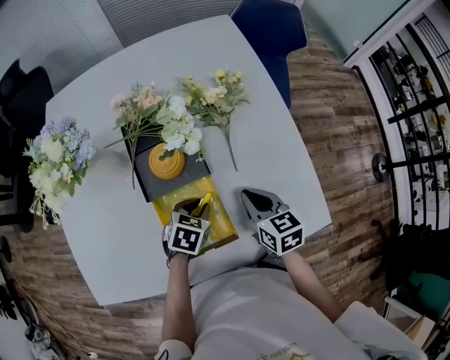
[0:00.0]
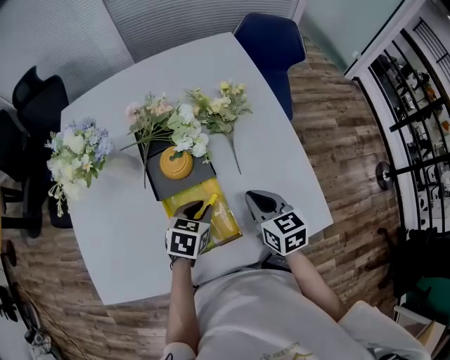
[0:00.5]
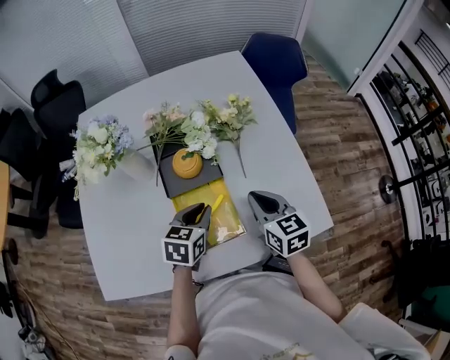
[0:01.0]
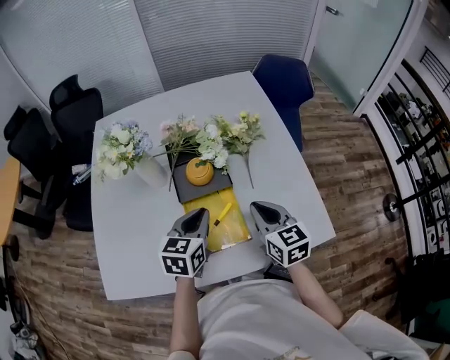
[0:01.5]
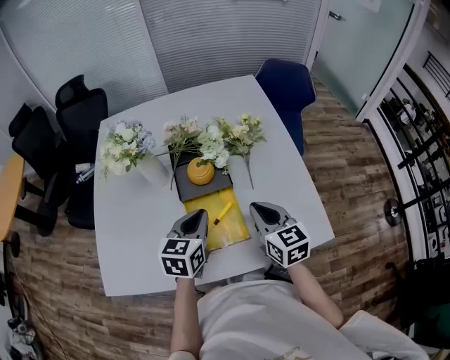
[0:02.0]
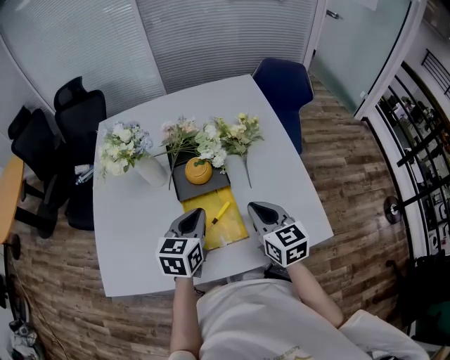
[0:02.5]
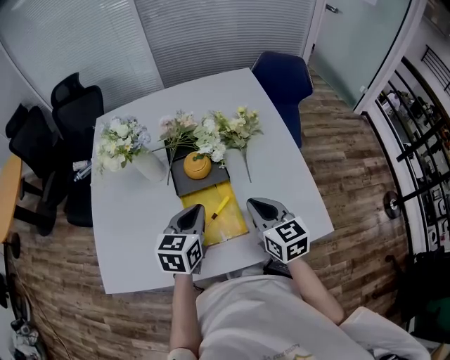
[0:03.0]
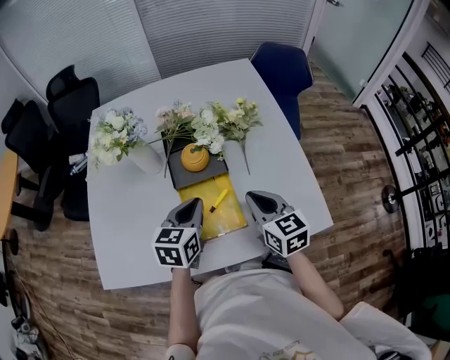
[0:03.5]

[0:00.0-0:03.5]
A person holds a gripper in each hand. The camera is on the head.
0:00.0 to 0:02.0: The right gripper shifts some 15 cm upward and backward. Meanwhile the left gripper travels upward by roughly 20 cm, and angles its fingers upward, by some 30 degrees.
0:02.0 to 0:03.5: Neither gripper changes place.

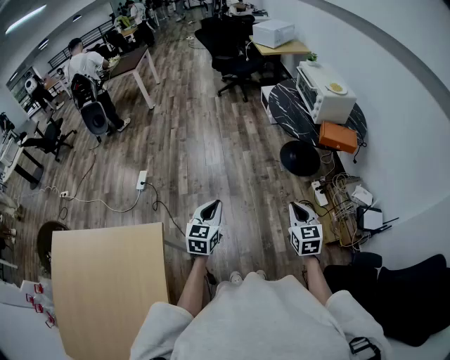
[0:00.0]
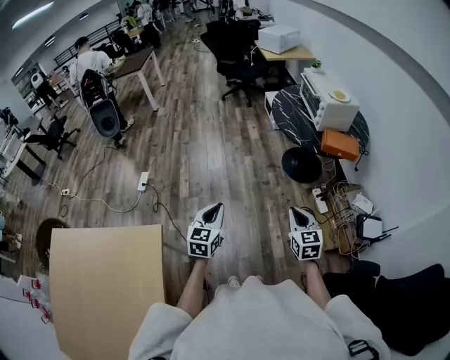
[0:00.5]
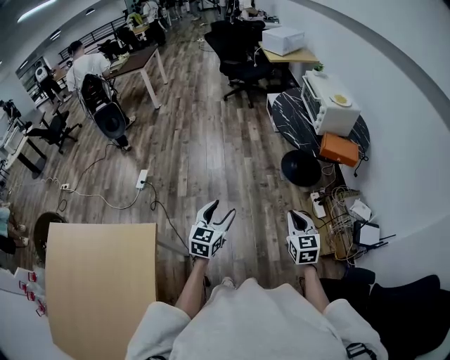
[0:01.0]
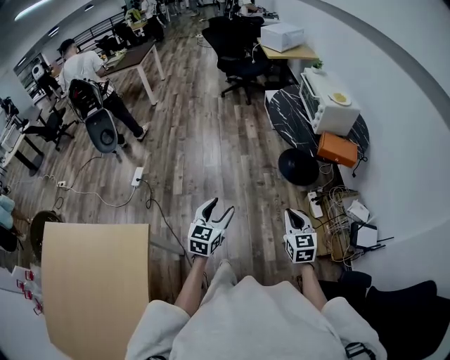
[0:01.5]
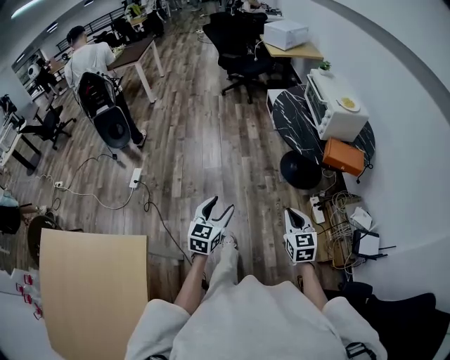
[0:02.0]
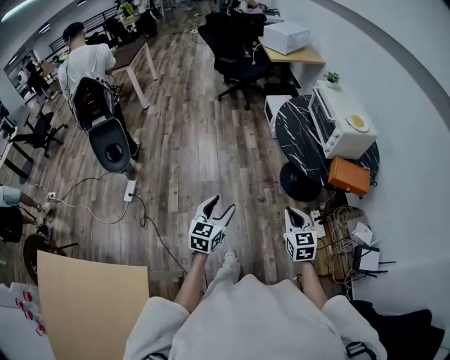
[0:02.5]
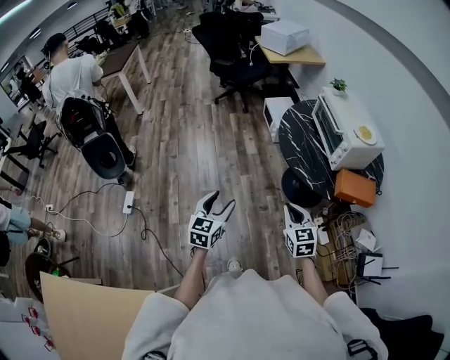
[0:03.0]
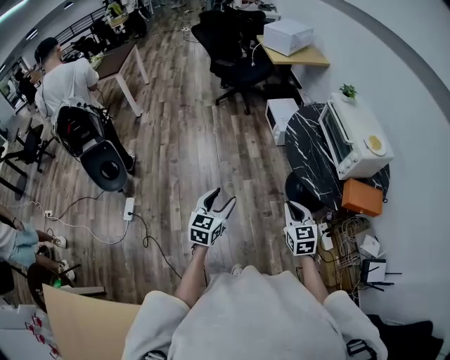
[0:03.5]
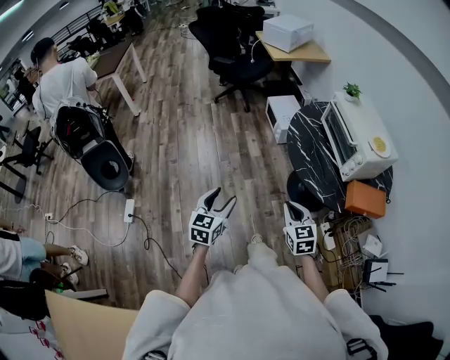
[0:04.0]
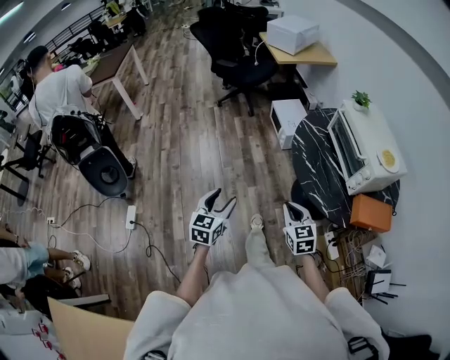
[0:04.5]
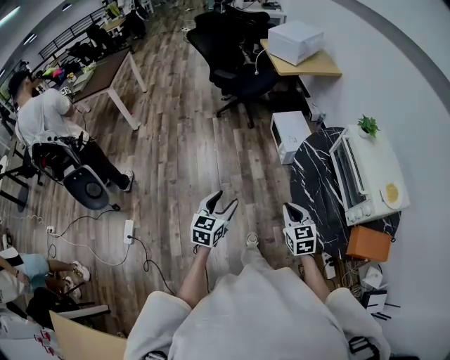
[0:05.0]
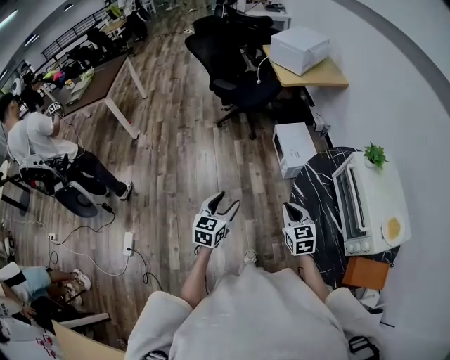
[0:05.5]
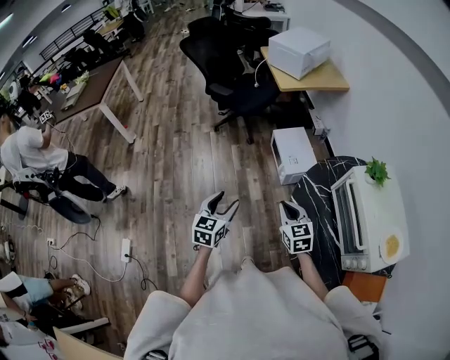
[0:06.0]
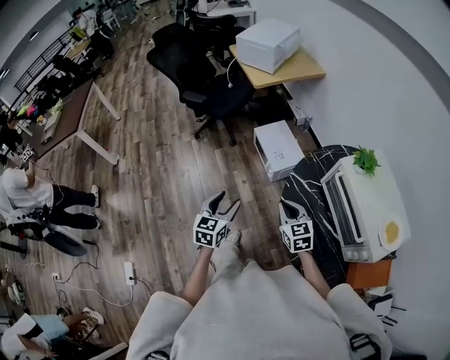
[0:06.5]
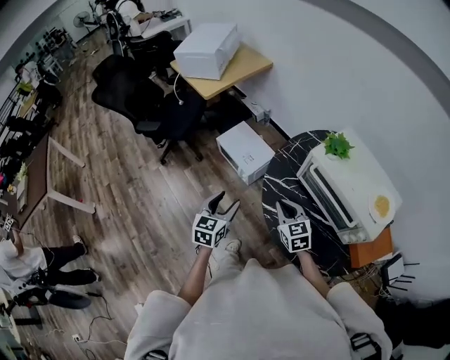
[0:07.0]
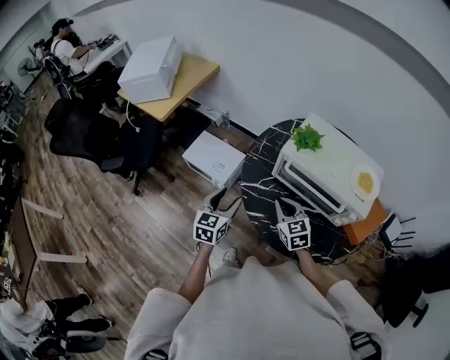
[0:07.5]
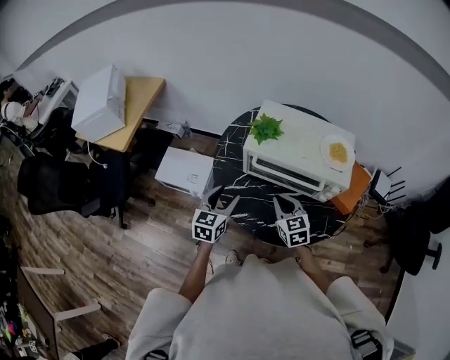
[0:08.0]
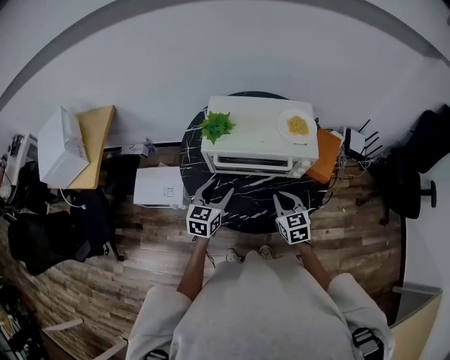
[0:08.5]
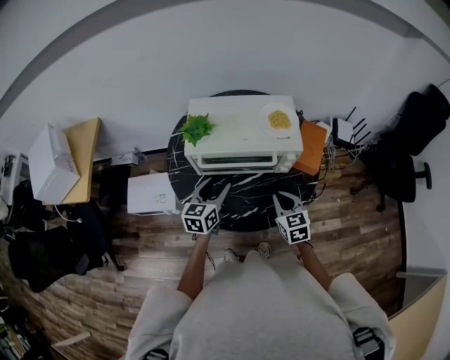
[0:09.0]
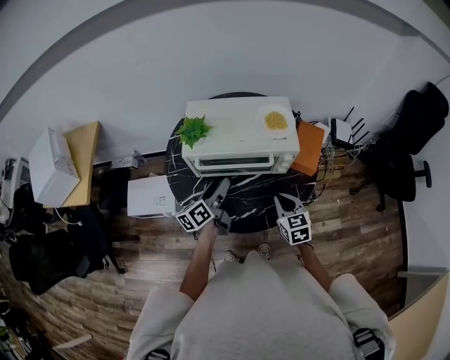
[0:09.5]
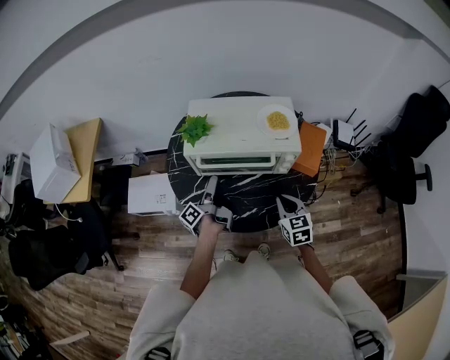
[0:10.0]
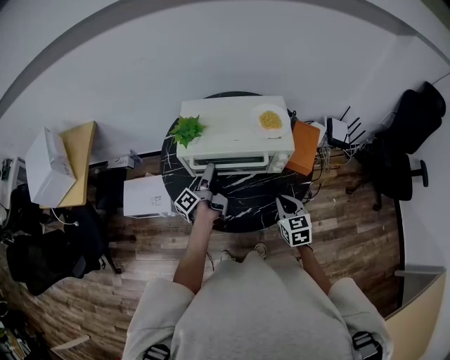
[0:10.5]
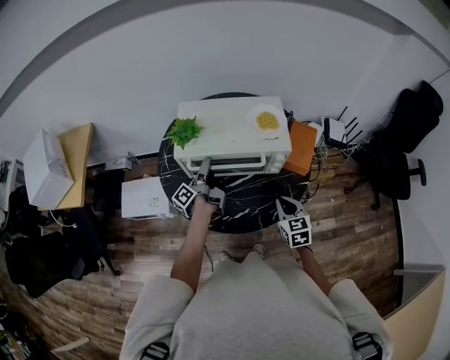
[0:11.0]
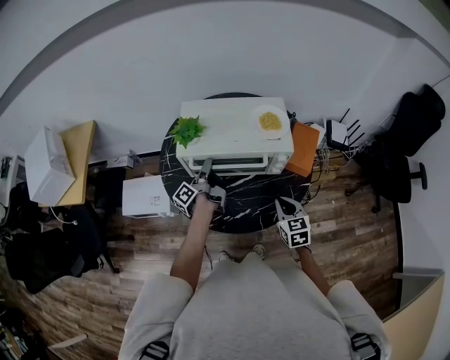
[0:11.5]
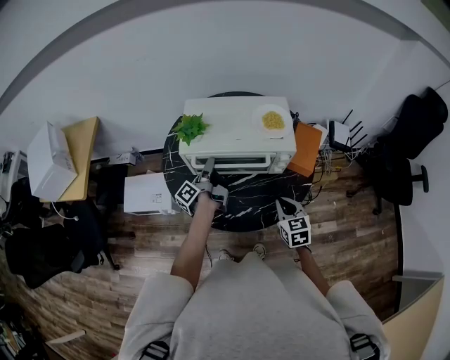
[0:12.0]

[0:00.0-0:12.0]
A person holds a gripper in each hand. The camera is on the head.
0:00.0 to 0:02.0: The left gripper goes approximately 15 cm forward and to the right, and opens up, while the right gripper heads forward, covering roughly 10 cm.
0:02.0 to 0:04.0: The right gripper shifts some 35 cm forward and to the left; the left gripper goes approximately 35 cm forward.
0:04.0 to 0:06.0: The pair of grippers is taken forward, about 40 cm.
0:06.0 to 0:08.0: The right gripper shifts by some 20 cm, and changes its angle by about 60 degrees, while the left gripper shifts by approximately 35 cm, and turns by about 60 degrees.
0:08.0 to 0:10.0: The right gripper goes approximately 15 cm to the right, and rotates approximately 20 degrees. The left gripper shifts approximately 10 cm to the right and forward, and rolls counterclockwise, seen from behind, by roughly 80 degrees.
0:10.0 to 0:12.0: The left gripper moves forward, about 5 cm, and closes.

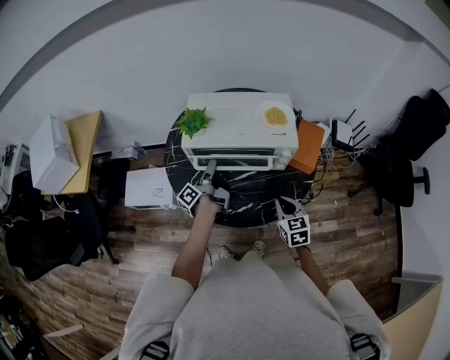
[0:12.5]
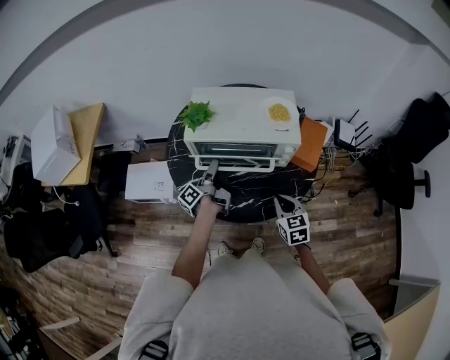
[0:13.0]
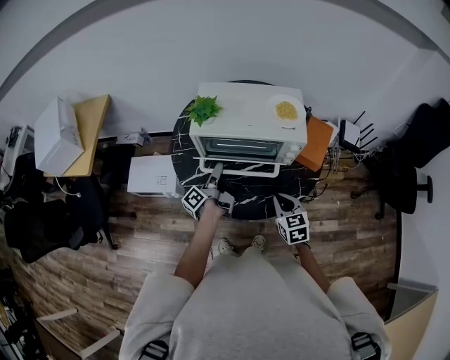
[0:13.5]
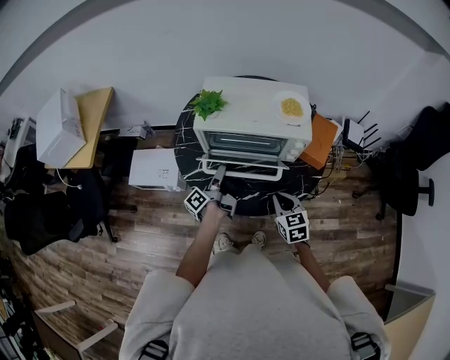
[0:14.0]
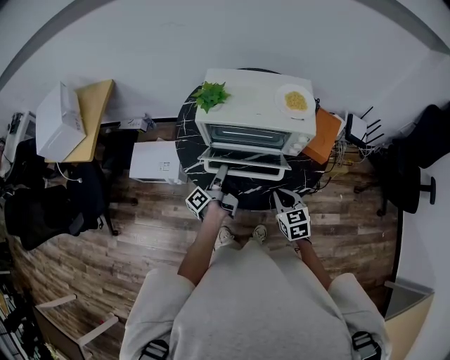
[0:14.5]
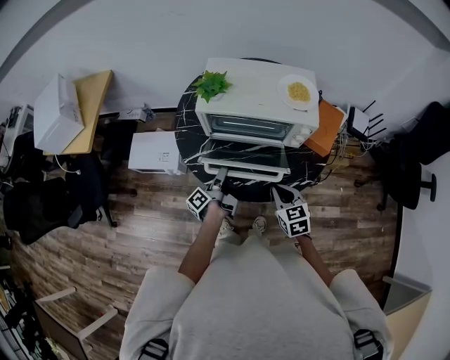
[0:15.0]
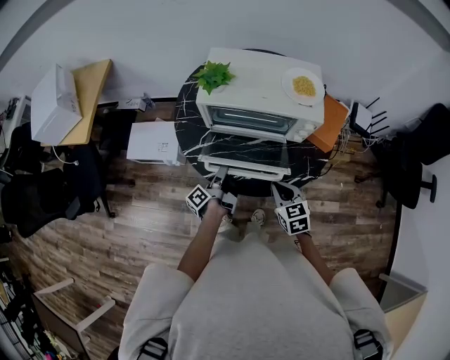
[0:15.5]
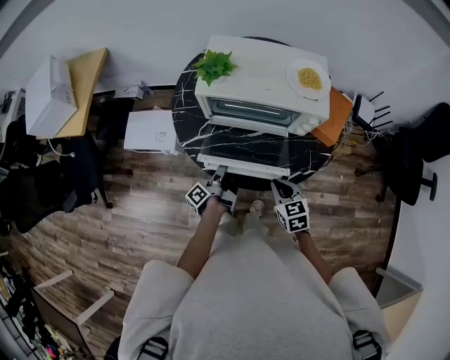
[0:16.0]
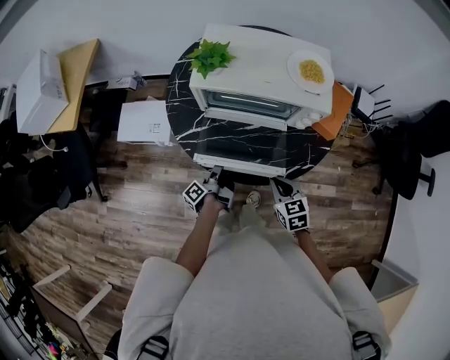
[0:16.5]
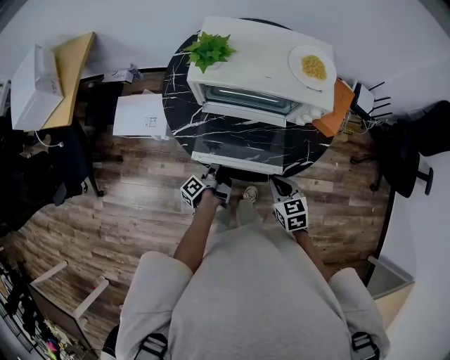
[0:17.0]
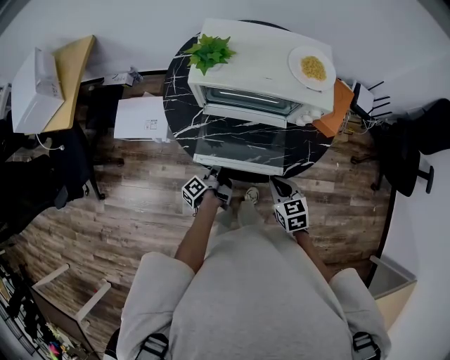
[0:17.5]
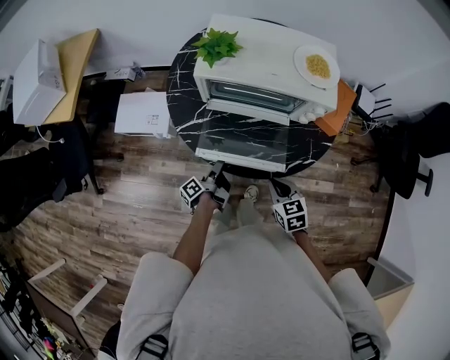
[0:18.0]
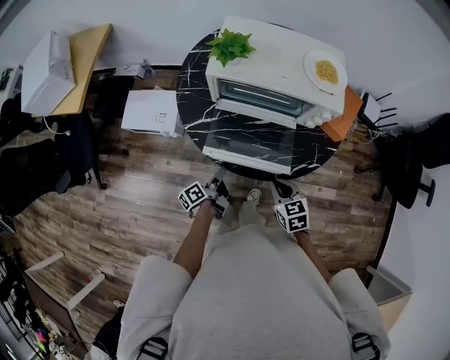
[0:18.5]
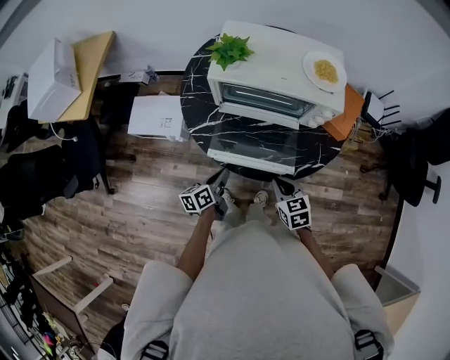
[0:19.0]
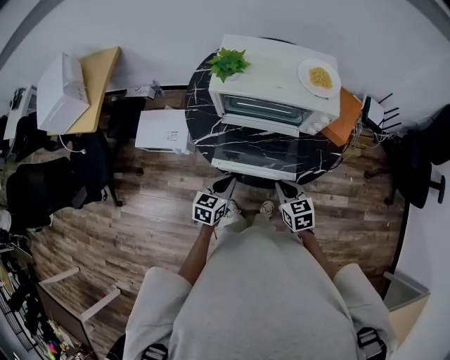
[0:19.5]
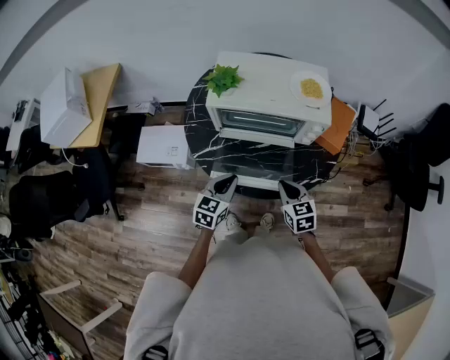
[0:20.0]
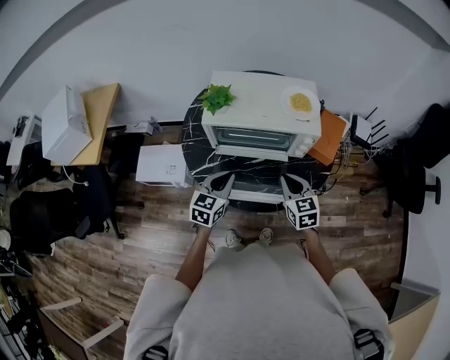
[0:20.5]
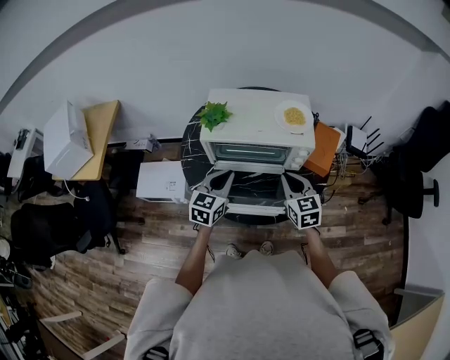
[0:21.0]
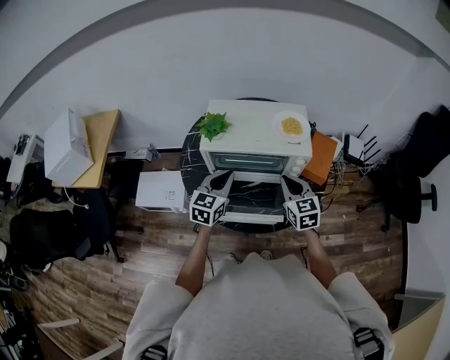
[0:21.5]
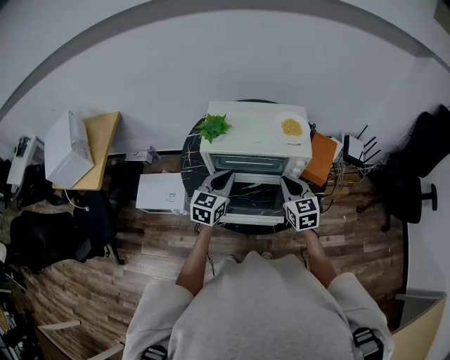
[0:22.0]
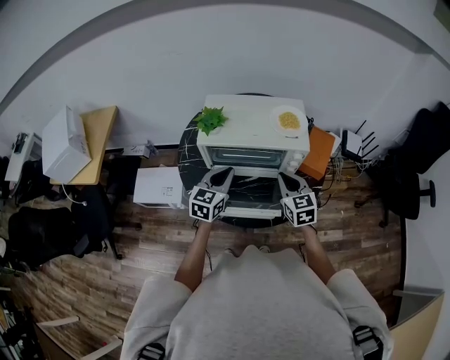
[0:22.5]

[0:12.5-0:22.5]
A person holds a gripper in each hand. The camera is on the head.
0:12.5 to 0:14.5: The left gripper is displaced backward by roughly 10 cm. The right gripper changes place by approximately 5 cm.
0:14.5 to 0:16.5: The right gripper is displaced downward by roughly 5 cm; the left gripper is displaced downward and backward by about 15 cm.
0:16.5 to 0:18.5: The left gripper shifts roughly 5 cm backward, and changes its angle by roughly 20 degrees.
0:18.5 to 0:20.5: The two grippers go roughly 20 cm upward and forward. The left gripper rotates around the line of its fingers by roughly 80 degrees, clockwise from behind, while the right gripper swivels approximately 20 degrees.
0:20.5 to 0:22.5: The right gripper shifts by about 5 cm; the left gripper travels forward and upward by some 10 cm.

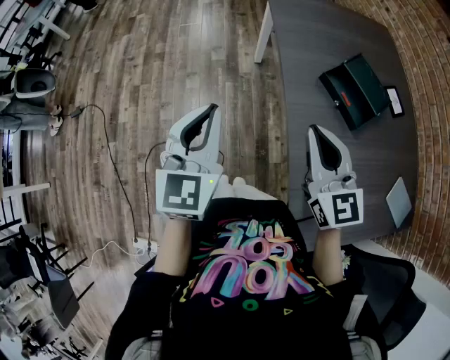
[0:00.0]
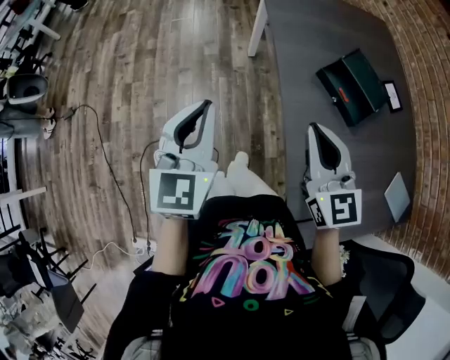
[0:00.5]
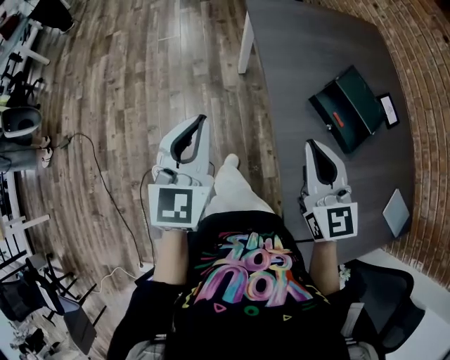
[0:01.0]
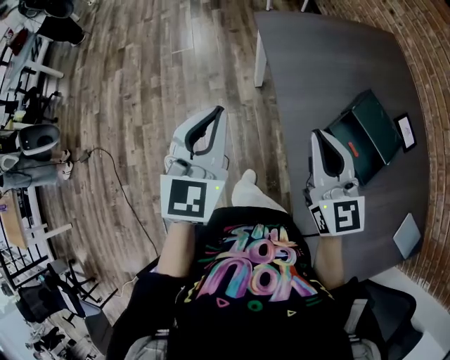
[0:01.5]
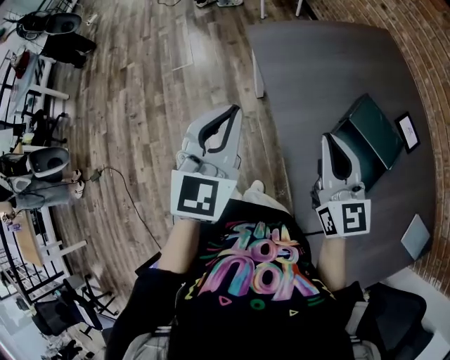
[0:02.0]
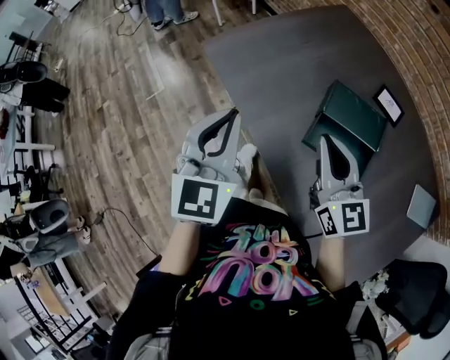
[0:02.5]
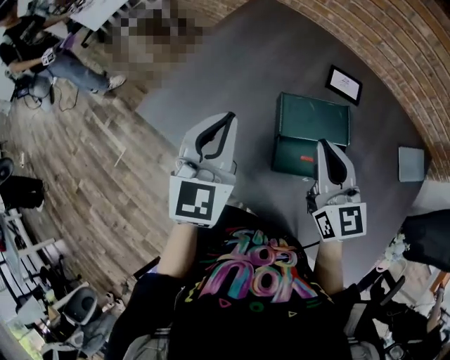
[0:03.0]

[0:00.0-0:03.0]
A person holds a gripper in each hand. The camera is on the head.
0:00.0 to 0:01.5: Both grippers travel together forward, about 25 cm.
0:01.5 to 0:03.0: The left gripper shifts by some 35 cm, and changes its angle by some 50 degrees, while the right gripper ends up roughly 25 cm from where it was, and turns by approximately 50 degrees.
